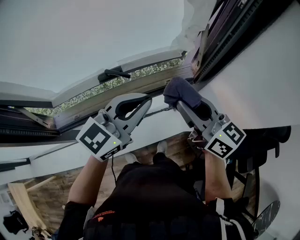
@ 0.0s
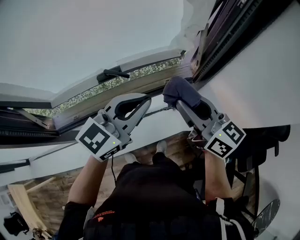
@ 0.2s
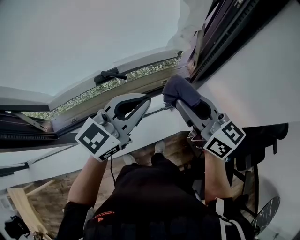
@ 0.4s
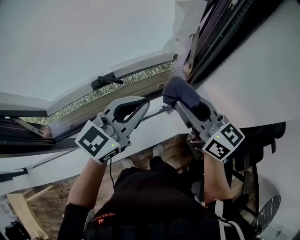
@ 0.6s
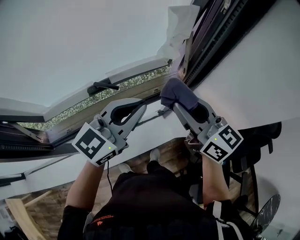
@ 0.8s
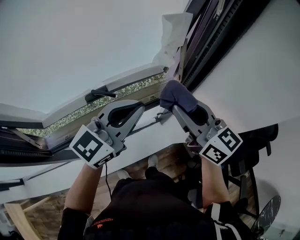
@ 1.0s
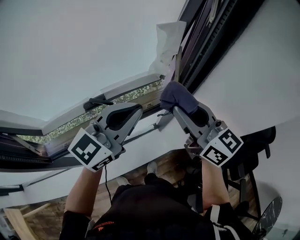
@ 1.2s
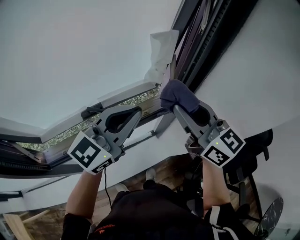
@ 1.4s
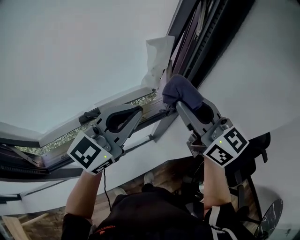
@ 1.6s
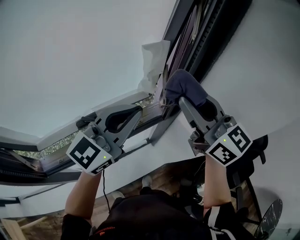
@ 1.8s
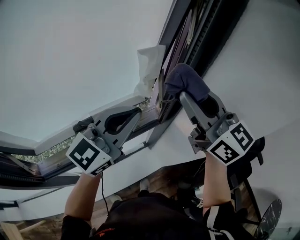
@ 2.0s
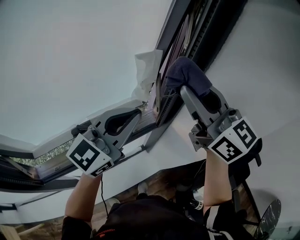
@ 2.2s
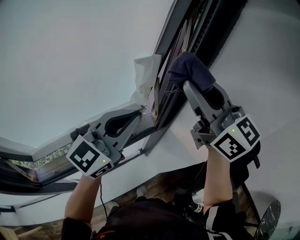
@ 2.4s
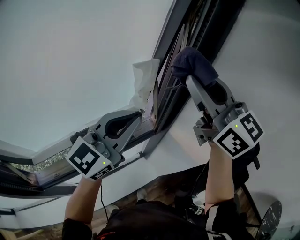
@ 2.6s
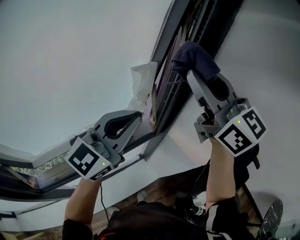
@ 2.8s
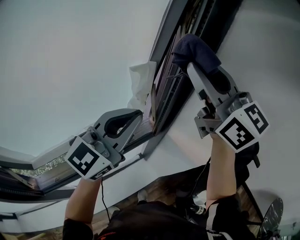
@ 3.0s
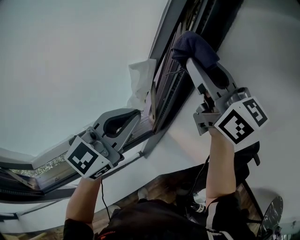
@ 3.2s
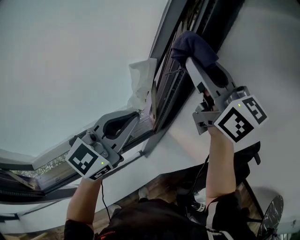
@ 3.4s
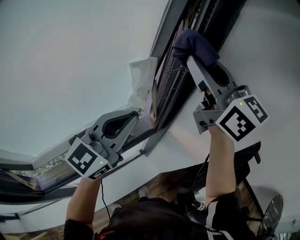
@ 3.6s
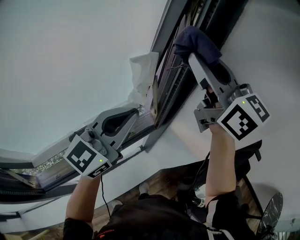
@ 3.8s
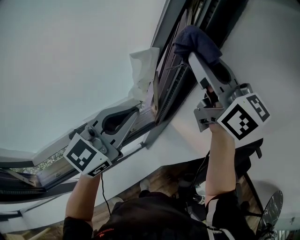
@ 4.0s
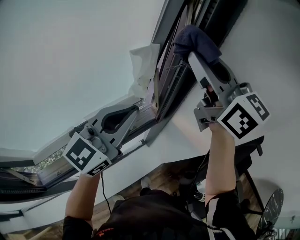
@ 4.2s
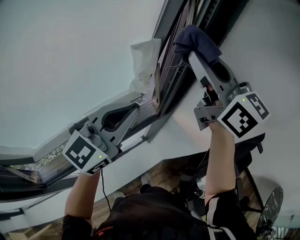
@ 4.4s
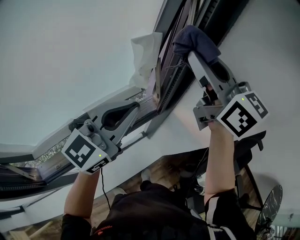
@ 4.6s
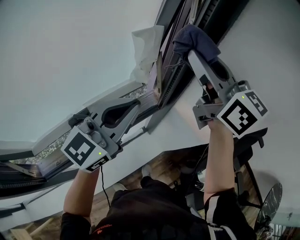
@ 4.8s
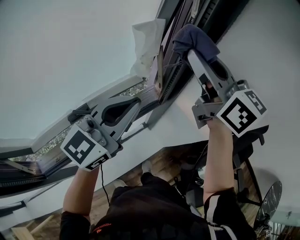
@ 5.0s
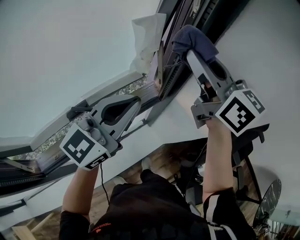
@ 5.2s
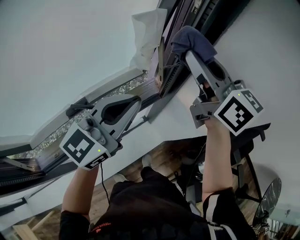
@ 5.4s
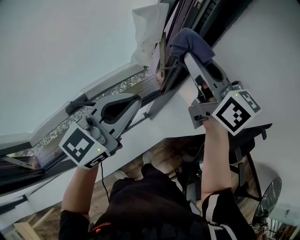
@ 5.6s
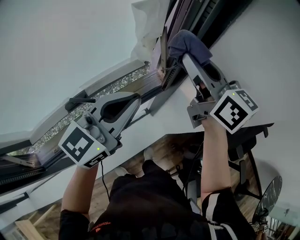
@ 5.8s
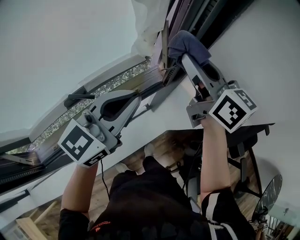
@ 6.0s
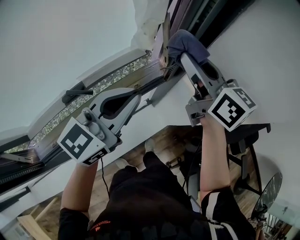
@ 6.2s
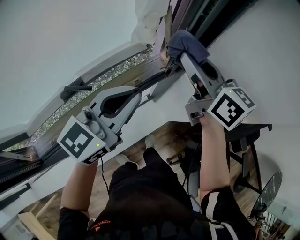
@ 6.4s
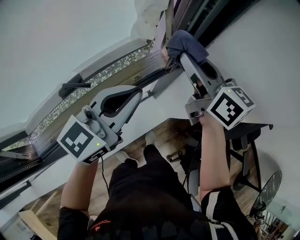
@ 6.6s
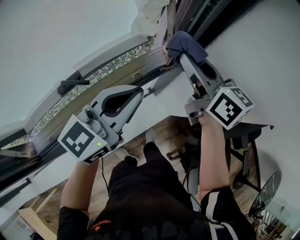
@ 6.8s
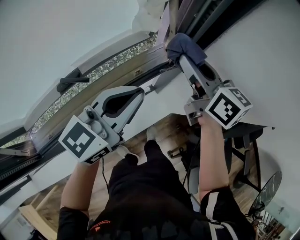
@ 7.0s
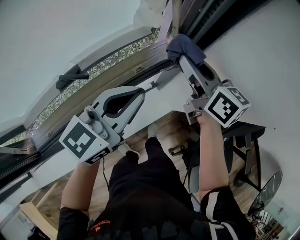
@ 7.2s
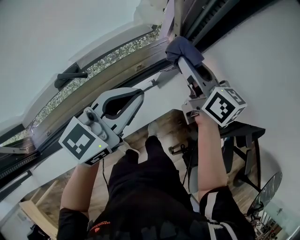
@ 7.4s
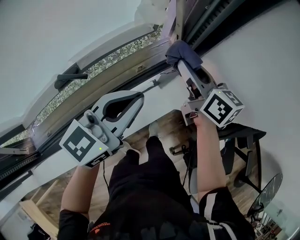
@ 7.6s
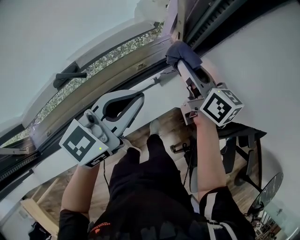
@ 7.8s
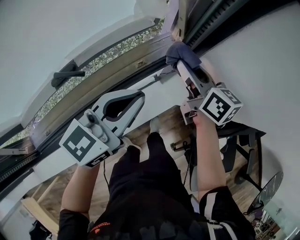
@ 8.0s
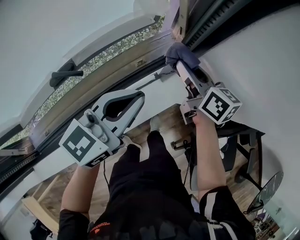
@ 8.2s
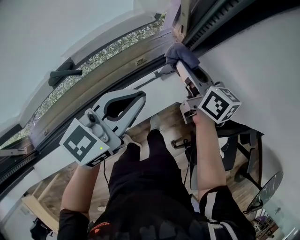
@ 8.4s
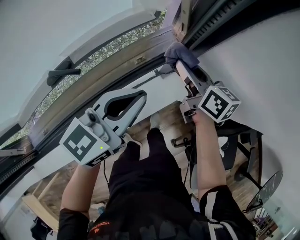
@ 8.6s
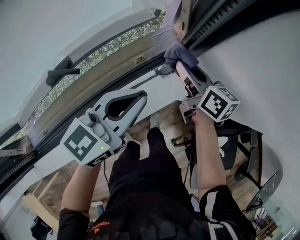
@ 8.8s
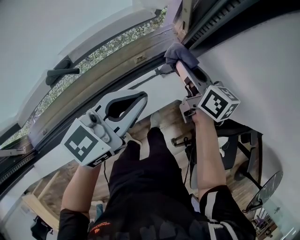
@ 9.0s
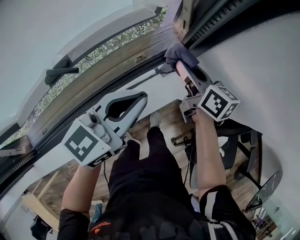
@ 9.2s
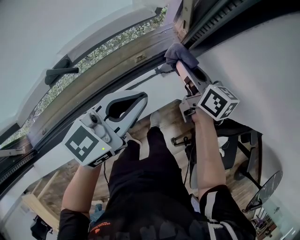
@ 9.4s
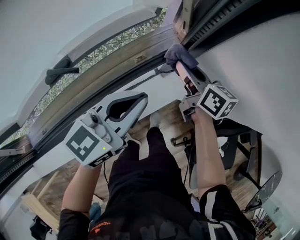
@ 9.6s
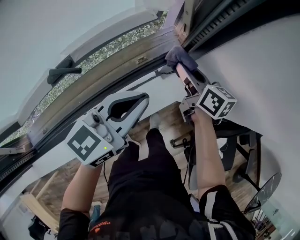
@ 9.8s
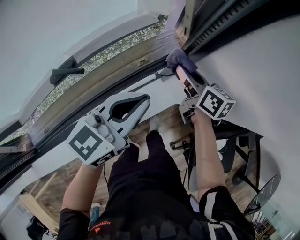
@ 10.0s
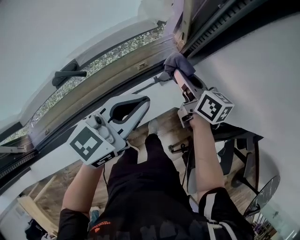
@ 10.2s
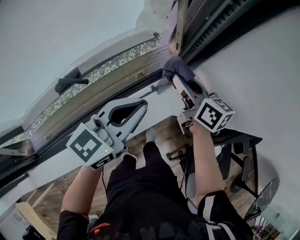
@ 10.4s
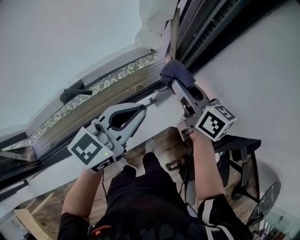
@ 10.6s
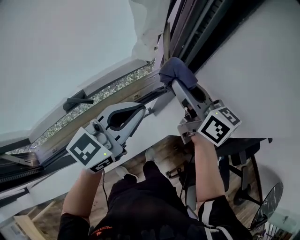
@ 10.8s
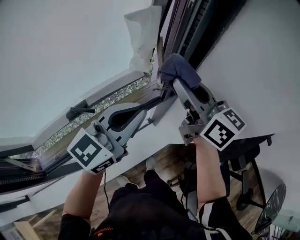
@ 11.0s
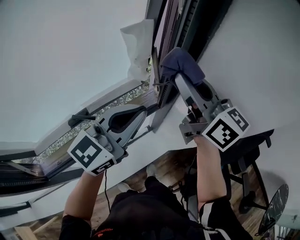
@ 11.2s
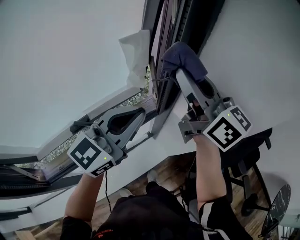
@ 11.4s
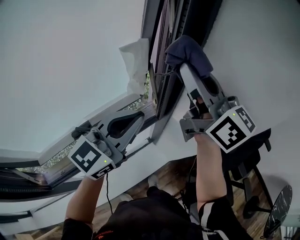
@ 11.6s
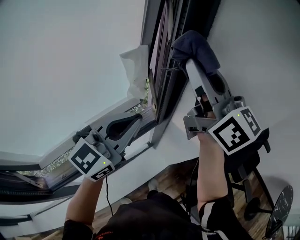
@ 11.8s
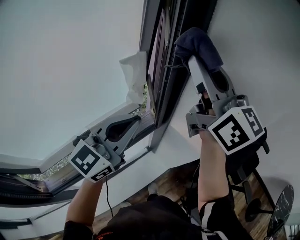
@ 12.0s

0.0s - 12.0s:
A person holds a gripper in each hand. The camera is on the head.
0.0s - 1.6s: The right gripper heads upward, to the right and forward, covering roughly 15 cm, and turns by roughly 20 degrees, while the left gripper travels upward and forward by some 10 cm.
1.6s - 3.0s: The right gripper goes approximately 15 cm upward; the left gripper shifts roughly 5 cm upward.
3.0s - 4.4s: The right gripper shifts by roughly 5 cm.
4.4s - 6.0s: The left gripper heads downward, covering some 10 cm. The right gripper is displaced downward by some 20 cm.
6.0s - 7.6s: The left gripper heads downward, covering some 10 cm. The right gripper is displaced downward by approximately 20 cm.
7.6s - 9.0s: The left gripper moves approximately 5 cm; the right gripper travels downward by some 10 cm.
9.0s - 10.4s: The right gripper moves upward, roughly 5 cm.
10.4s - 12.0s: The left gripper shifts some 20 cm upward, and swivels about 20 degrees; the right gripper moves upward, about 40 cm, and tilts its fingers about 40 degrees upward.

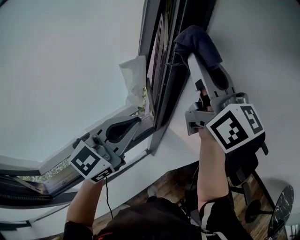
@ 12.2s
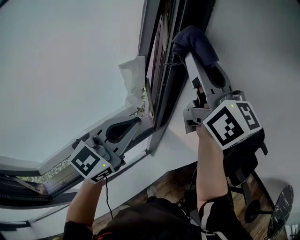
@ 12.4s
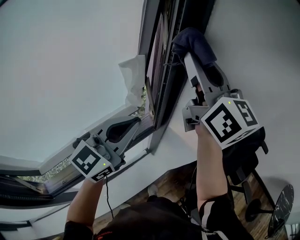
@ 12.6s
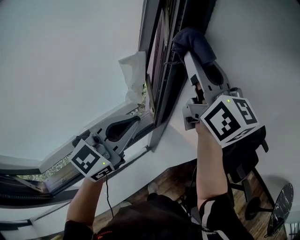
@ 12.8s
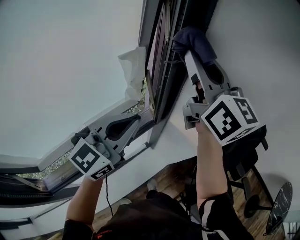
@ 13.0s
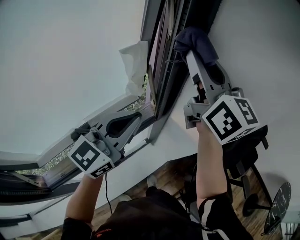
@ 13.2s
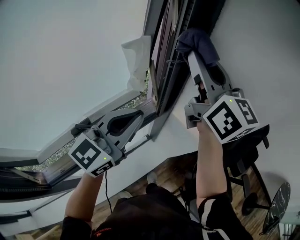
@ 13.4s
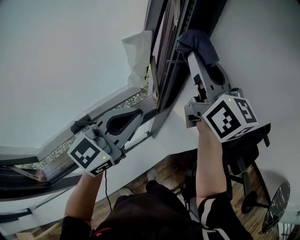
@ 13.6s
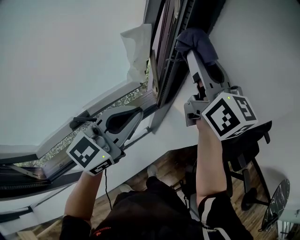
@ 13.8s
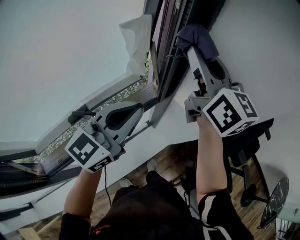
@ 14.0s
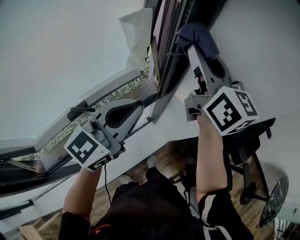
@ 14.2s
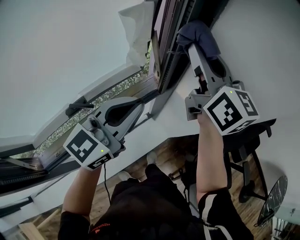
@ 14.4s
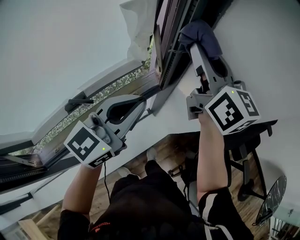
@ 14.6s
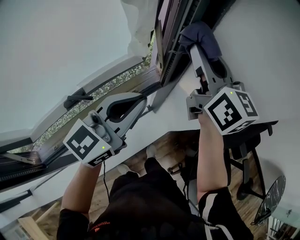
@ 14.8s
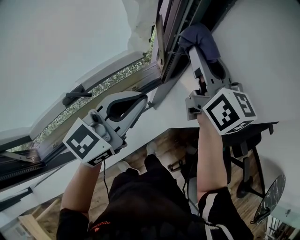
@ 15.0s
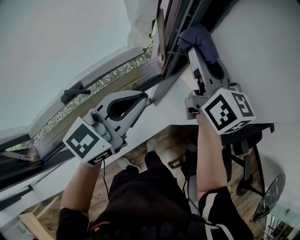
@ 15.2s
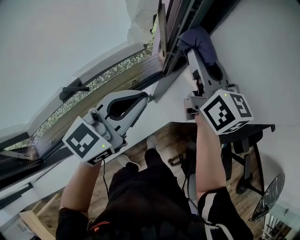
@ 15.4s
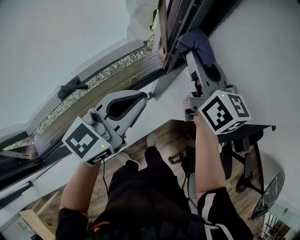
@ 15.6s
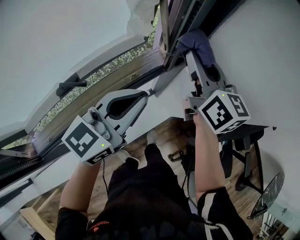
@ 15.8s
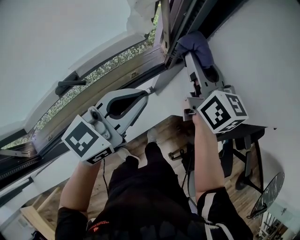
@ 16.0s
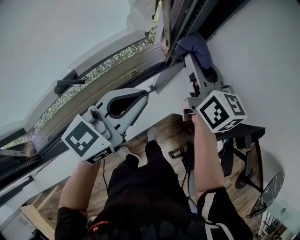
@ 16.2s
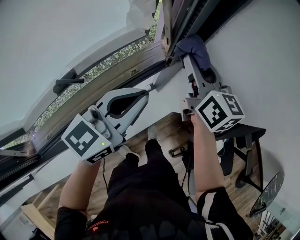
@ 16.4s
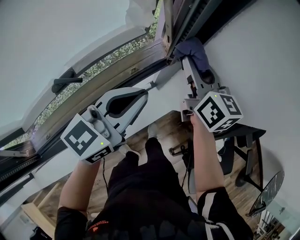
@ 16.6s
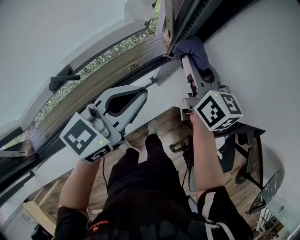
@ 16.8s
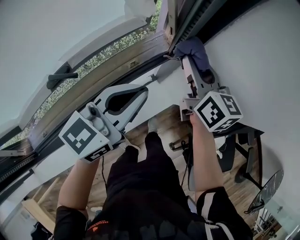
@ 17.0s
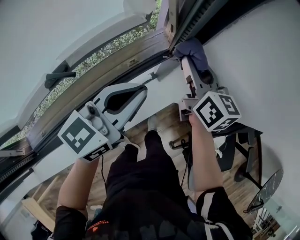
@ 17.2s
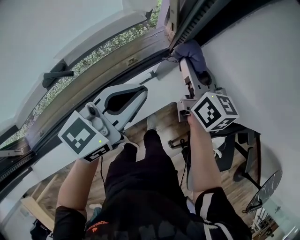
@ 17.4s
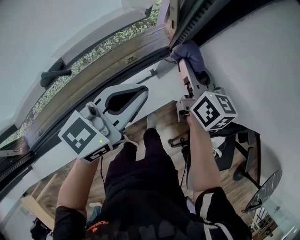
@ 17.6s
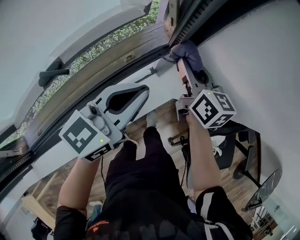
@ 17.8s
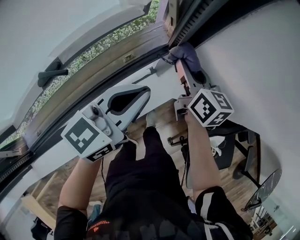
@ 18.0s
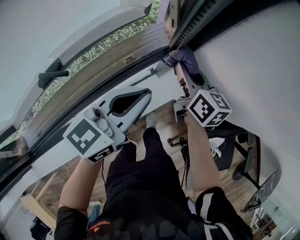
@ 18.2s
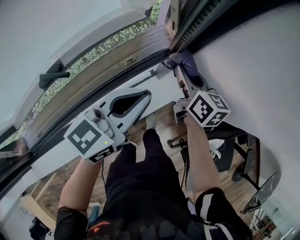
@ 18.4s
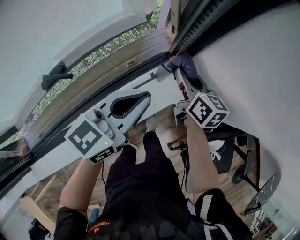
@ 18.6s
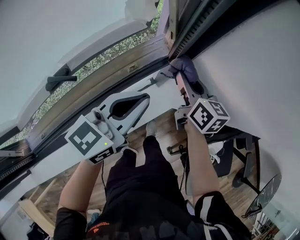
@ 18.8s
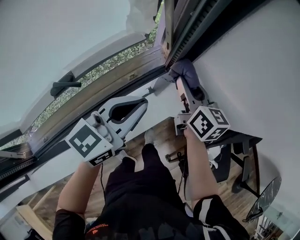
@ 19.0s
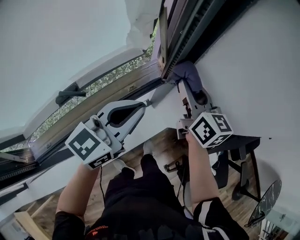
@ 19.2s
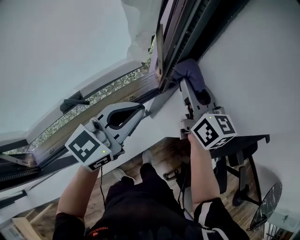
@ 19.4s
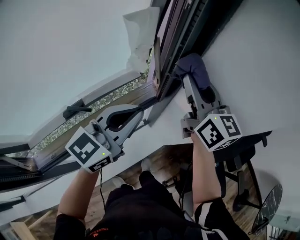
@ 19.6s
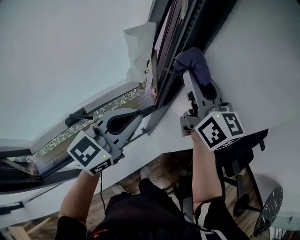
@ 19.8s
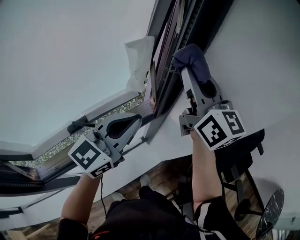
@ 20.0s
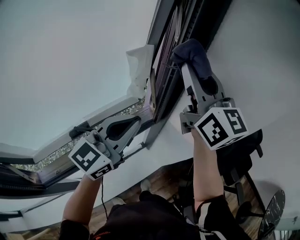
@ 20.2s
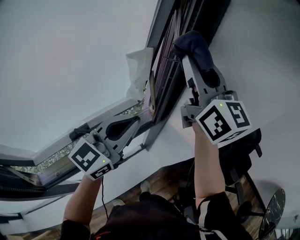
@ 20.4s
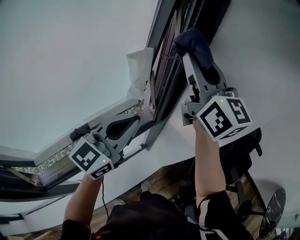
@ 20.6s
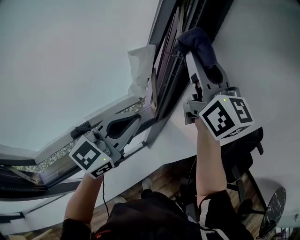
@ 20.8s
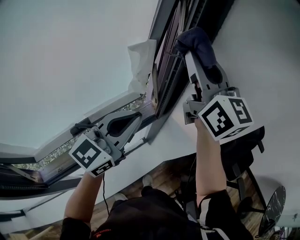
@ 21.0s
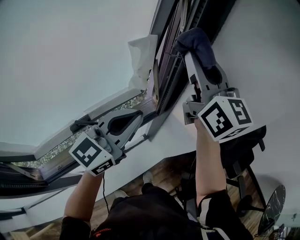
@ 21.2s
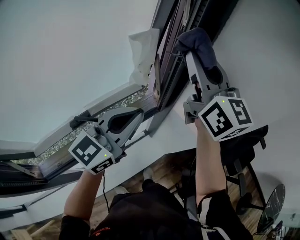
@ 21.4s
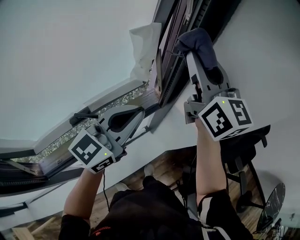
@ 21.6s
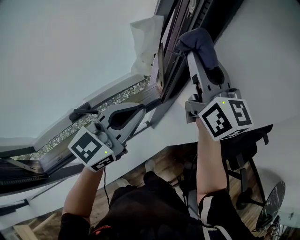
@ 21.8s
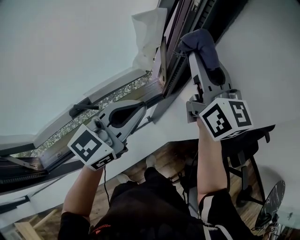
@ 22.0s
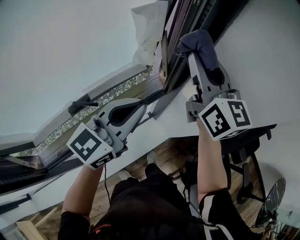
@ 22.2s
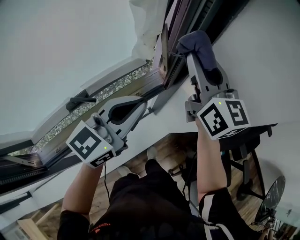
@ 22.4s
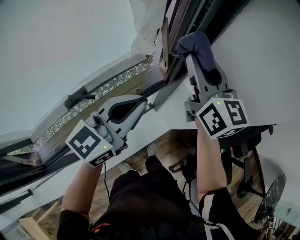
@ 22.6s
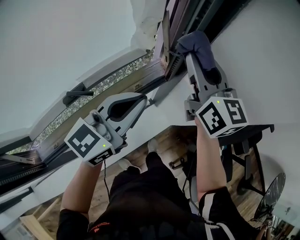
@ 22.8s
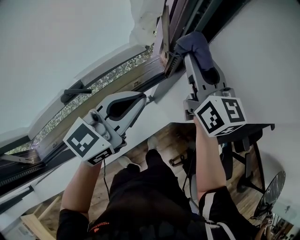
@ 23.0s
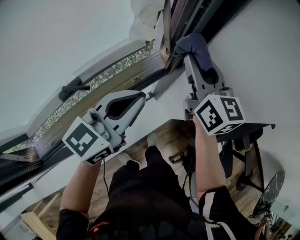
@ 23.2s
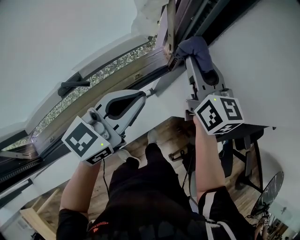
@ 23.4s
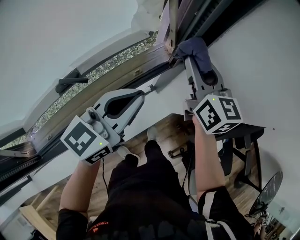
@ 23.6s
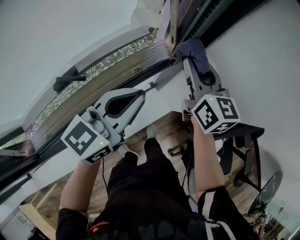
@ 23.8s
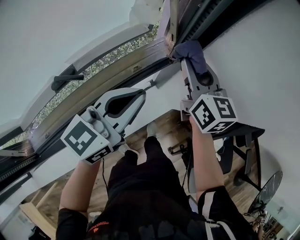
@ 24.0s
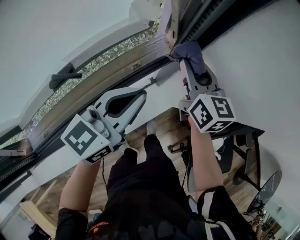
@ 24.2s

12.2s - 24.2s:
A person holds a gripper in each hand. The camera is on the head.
12.2s - 13.8s: The right gripper shifts approximately 10 cm downward; the left gripper heads downward, covering roughly 5 cm.
13.8s - 15.2s: The left gripper travels downward by approximately 5 cm, while the right gripper moves downward, about 15 cm.
15.2s - 16.6s: The right gripper is displaced downward by some 15 cm, while the left gripper moves downward, some 5 cm.
16.6s - 18.2s: The left gripper goes some 10 cm downward, while the right gripper travels downward by about 15 cm.
18.2s - 19.8s: The right gripper shifts roughly 35 cm upward, and rotates roughly 40 degrees. The left gripper is displaced upward by some 20 cm, and swivels some 20 degrees.
19.8s - 21.2s: The right gripper travels upward by approximately 10 cm.
21.2s - 22.6s: The right gripper shifts roughly 15 cm downward. The left gripper travels downward by some 10 cm.
22.6s - 24.2s: The left gripper goes some 10 cm downward; the right gripper is displaced downward by roughly 20 cm.
